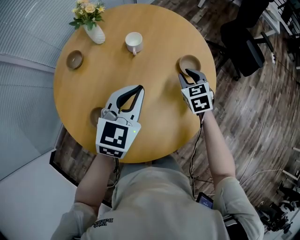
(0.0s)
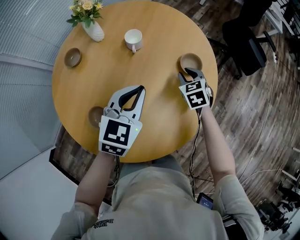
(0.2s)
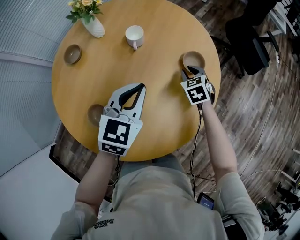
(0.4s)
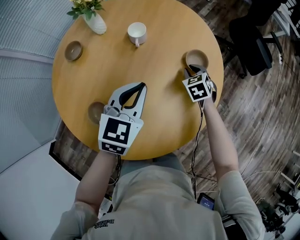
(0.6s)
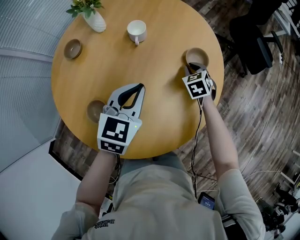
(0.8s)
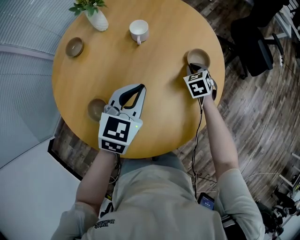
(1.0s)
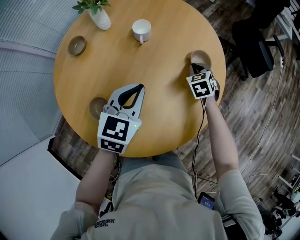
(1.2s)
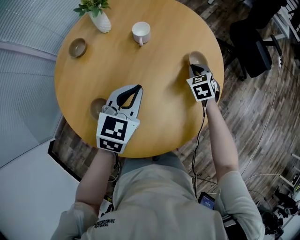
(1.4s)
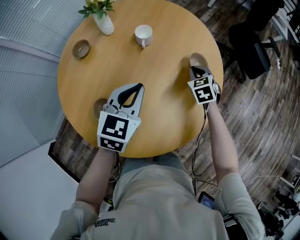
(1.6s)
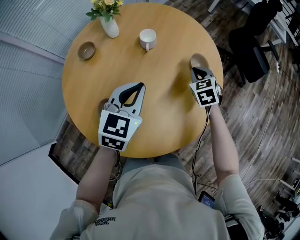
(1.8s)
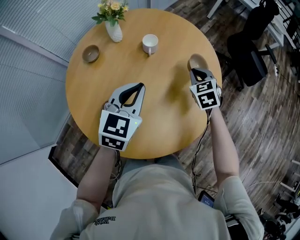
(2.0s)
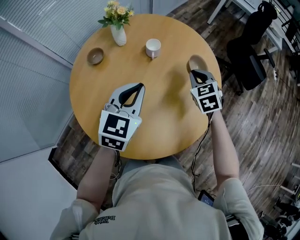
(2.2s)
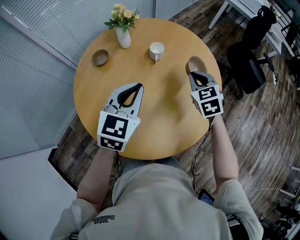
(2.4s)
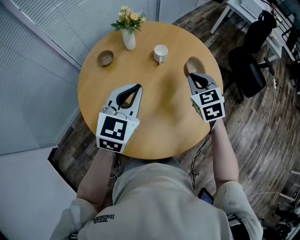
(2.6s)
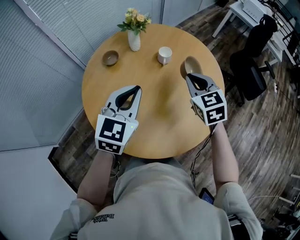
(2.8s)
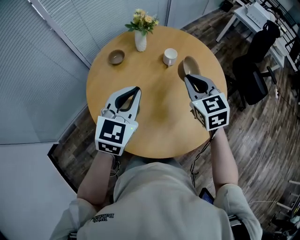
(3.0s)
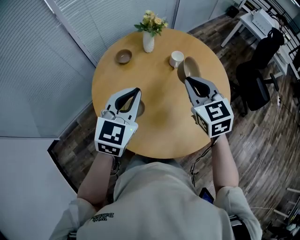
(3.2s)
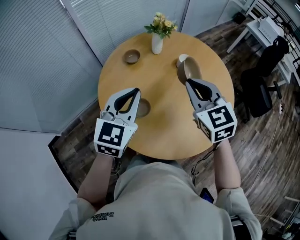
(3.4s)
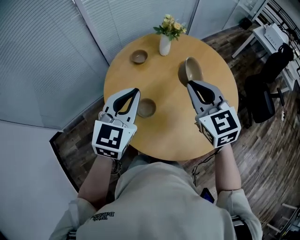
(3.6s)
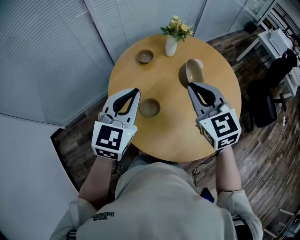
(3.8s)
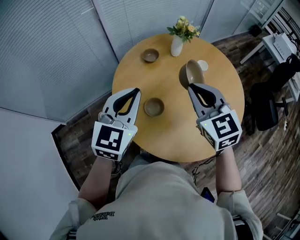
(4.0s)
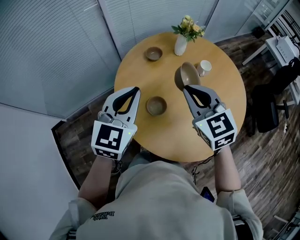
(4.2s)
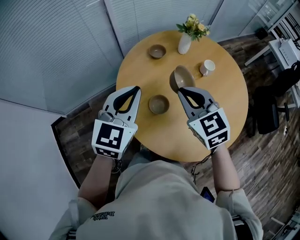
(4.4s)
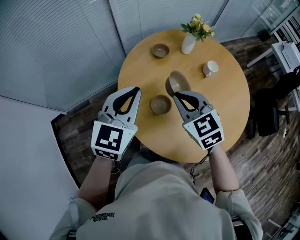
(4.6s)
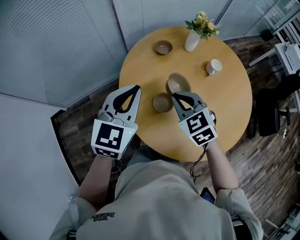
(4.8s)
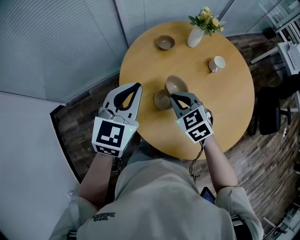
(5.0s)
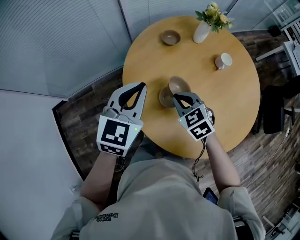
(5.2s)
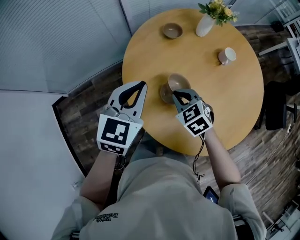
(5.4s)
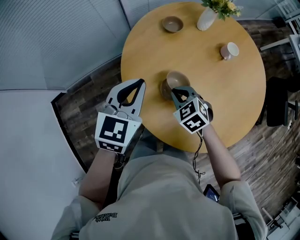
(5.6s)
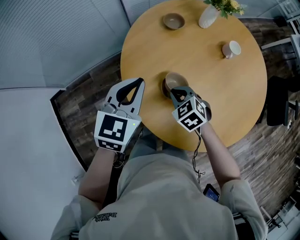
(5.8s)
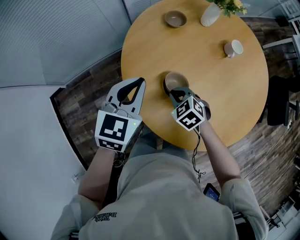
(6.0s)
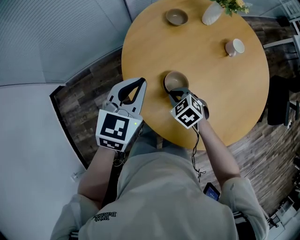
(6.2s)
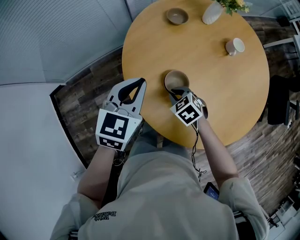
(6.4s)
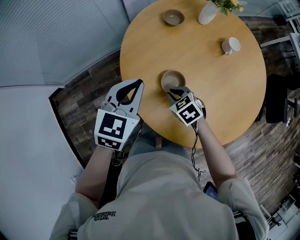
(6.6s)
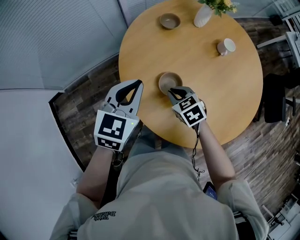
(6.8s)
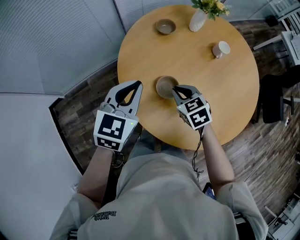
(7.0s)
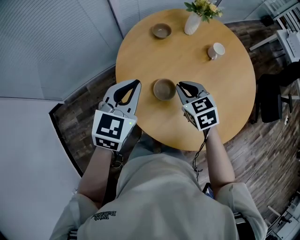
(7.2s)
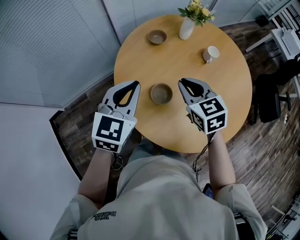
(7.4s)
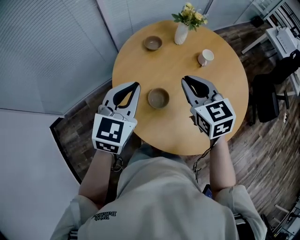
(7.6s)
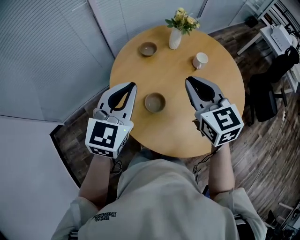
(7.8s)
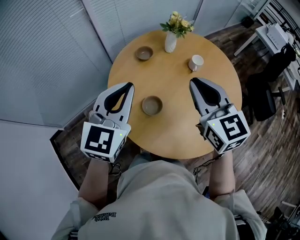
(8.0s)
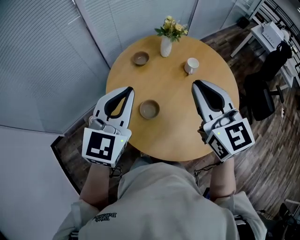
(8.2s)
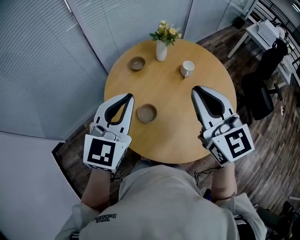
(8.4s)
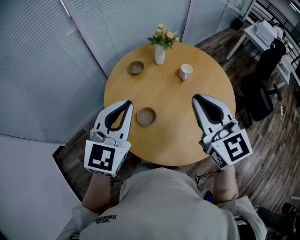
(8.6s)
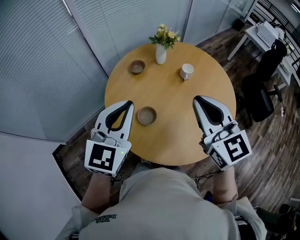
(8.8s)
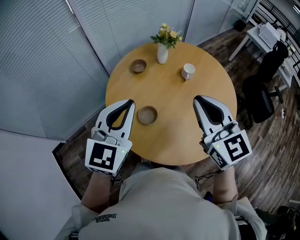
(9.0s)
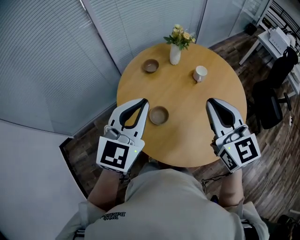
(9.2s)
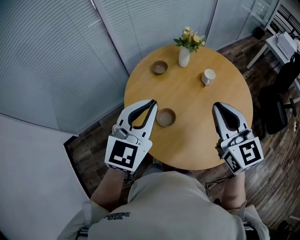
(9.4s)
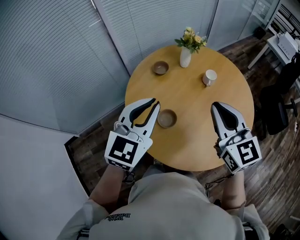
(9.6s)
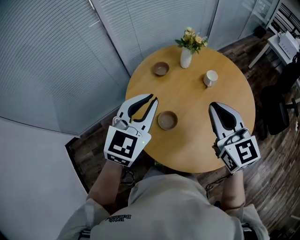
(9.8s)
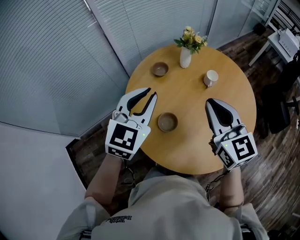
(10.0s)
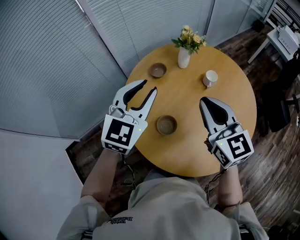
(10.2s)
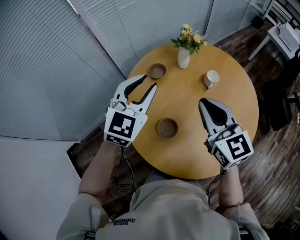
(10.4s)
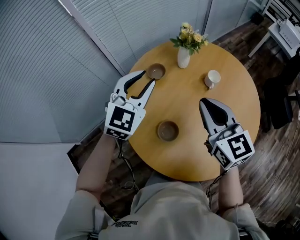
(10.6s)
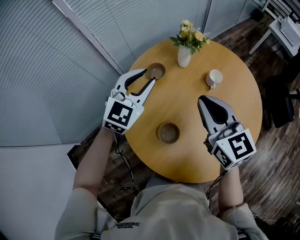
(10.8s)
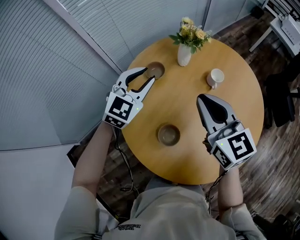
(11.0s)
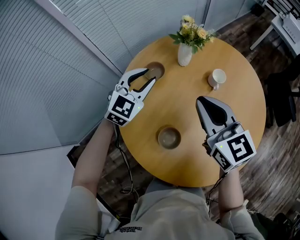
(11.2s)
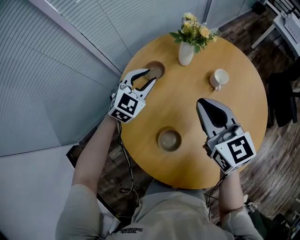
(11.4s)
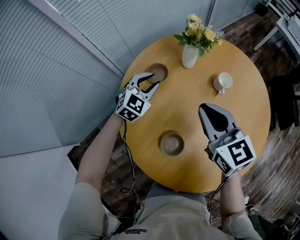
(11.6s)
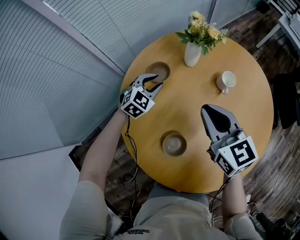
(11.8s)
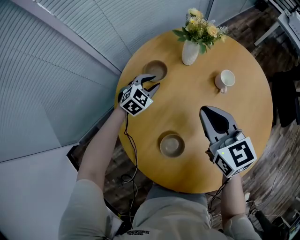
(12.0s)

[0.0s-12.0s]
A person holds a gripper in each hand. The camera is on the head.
1.6s to 3.0s: The right gripper moves upward, to the left and backward, approximately 30 cm, and turns by about 30 degrees; the left gripper travels upward, to the left and backward by some 20 cm.
3.0s to 4.4s: Both grippers move to the left, roughly 20 cm. The right gripper swivels approximately 30 degrees.
4.4s to 6.0s: The left gripper is displaced downward by approximately 15 cm. Meanwhile the right gripper travels downward by some 25 cm, and angles its fingers downward, by approximately 30 degrees.
6.0s to 7.6s: The left gripper shifts roughly 10 cm upward. Meanwhile the right gripper travels upward by approximately 25 cm, and points its fingers some 30 degrees further upward.
7.6s to 9.0s: The left gripper moves upward and to the right, about 10 cm. The right gripper shifts some 15 cm upward, to the right and backward.
9.0s to 10.4s: The right gripper moves forward and downward, some 10 cm. Meanwhile the left gripper shifts roughly 15 cm forward, and opens its fingers.
10.4s to 12.0s: The left gripper shifts some 40 cm downward and forward, and changes its angle by some 30 degrees. Meanwhile the right gripper travels downward and forward by roughly 15 cm.

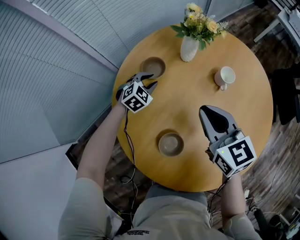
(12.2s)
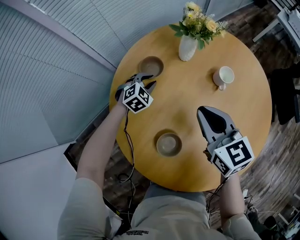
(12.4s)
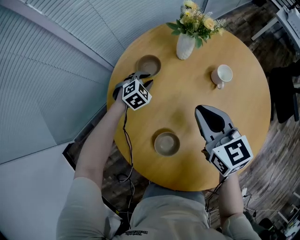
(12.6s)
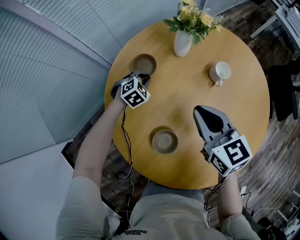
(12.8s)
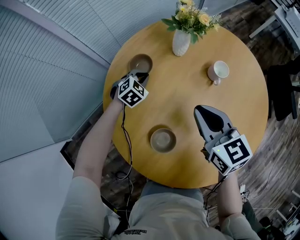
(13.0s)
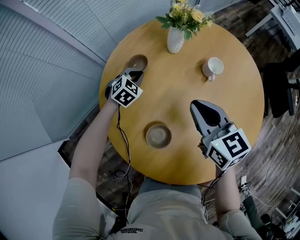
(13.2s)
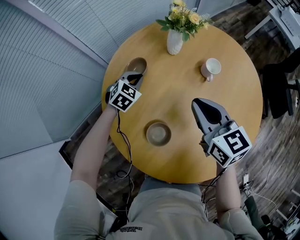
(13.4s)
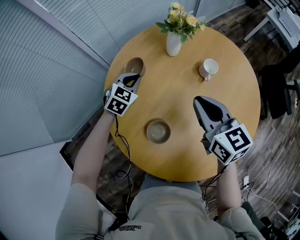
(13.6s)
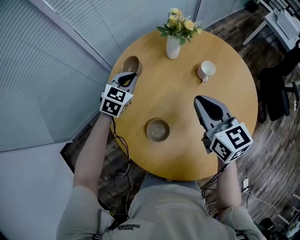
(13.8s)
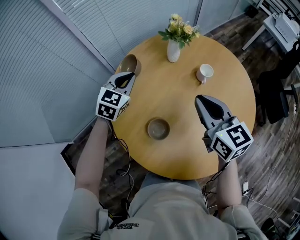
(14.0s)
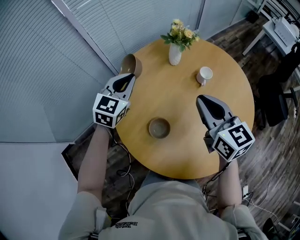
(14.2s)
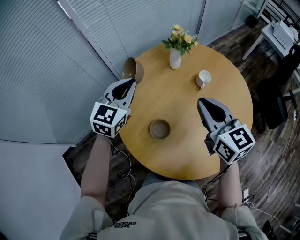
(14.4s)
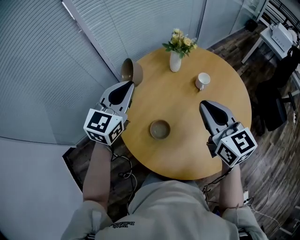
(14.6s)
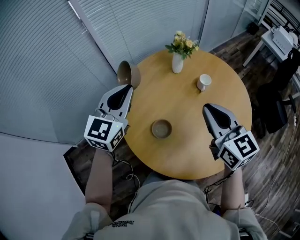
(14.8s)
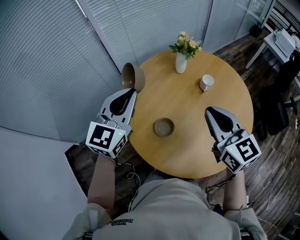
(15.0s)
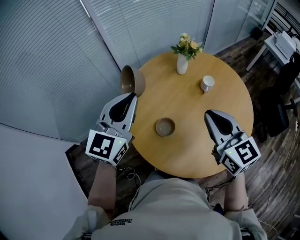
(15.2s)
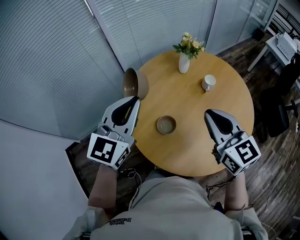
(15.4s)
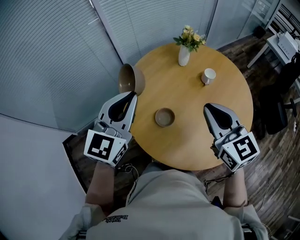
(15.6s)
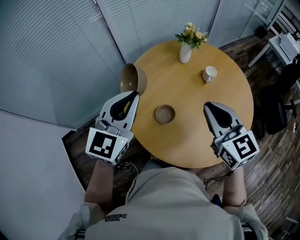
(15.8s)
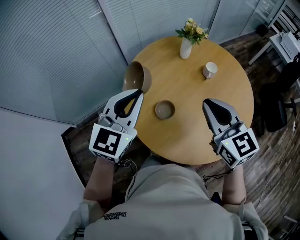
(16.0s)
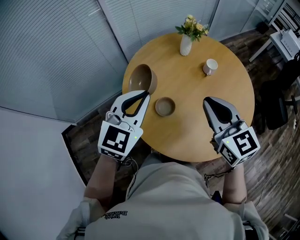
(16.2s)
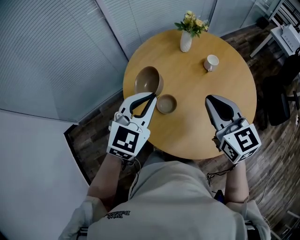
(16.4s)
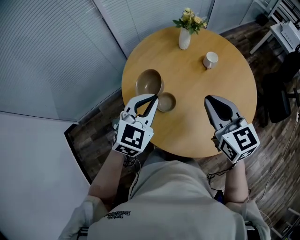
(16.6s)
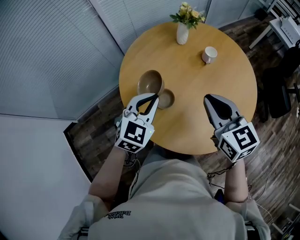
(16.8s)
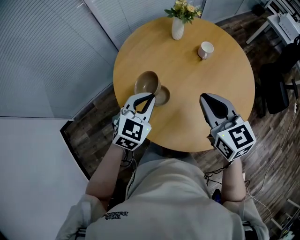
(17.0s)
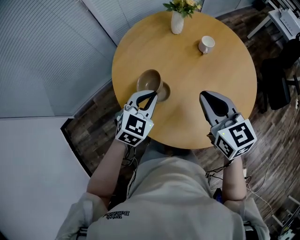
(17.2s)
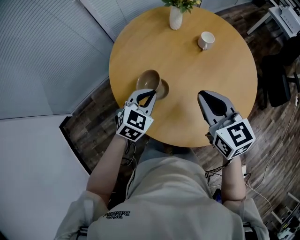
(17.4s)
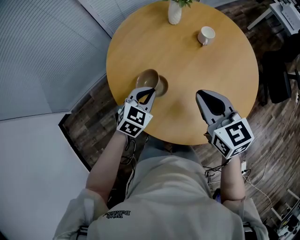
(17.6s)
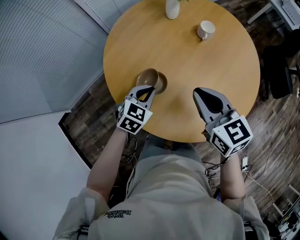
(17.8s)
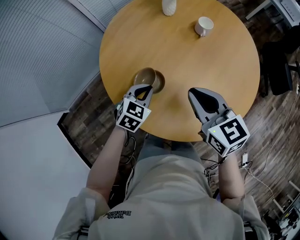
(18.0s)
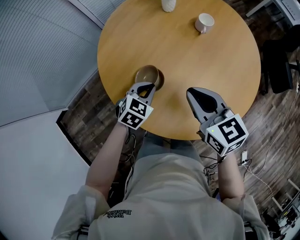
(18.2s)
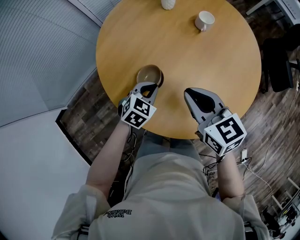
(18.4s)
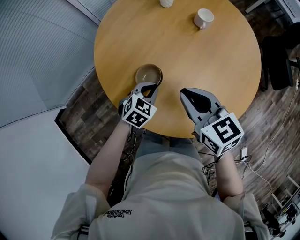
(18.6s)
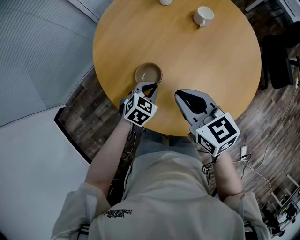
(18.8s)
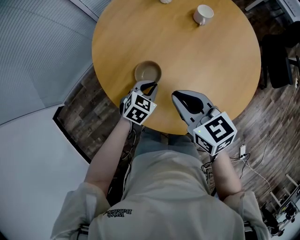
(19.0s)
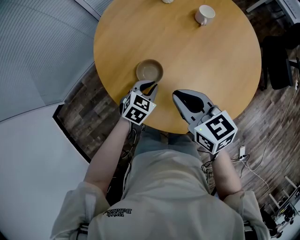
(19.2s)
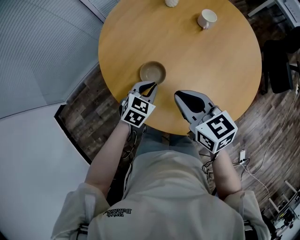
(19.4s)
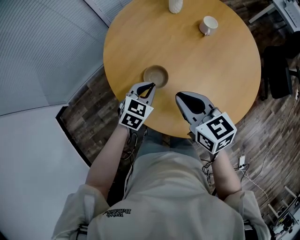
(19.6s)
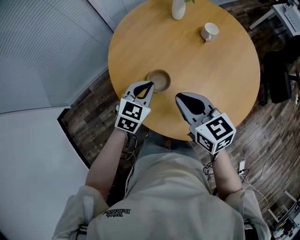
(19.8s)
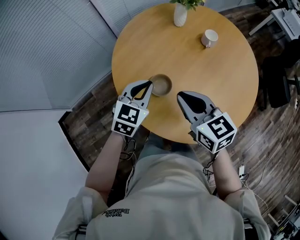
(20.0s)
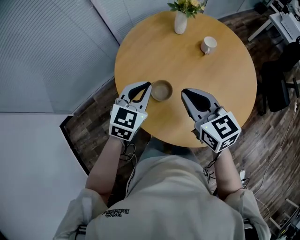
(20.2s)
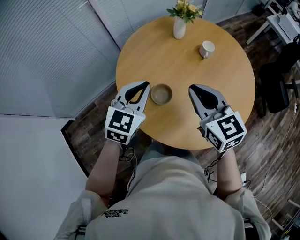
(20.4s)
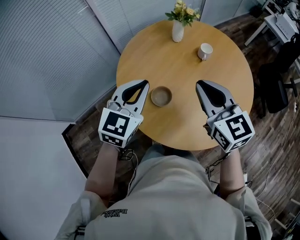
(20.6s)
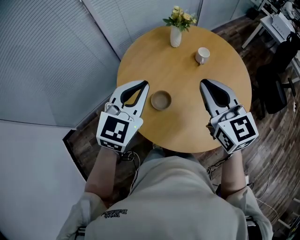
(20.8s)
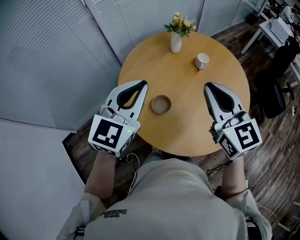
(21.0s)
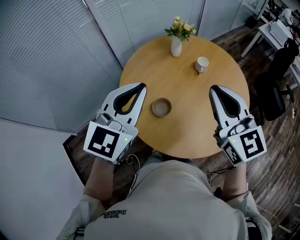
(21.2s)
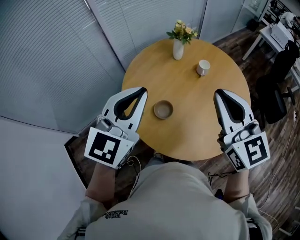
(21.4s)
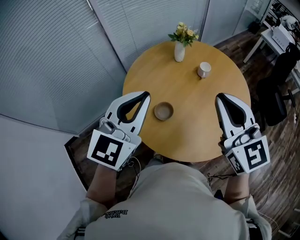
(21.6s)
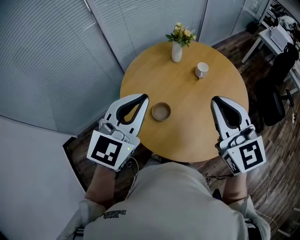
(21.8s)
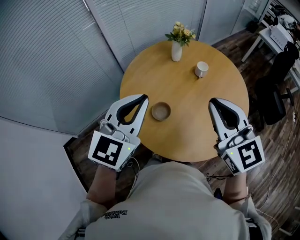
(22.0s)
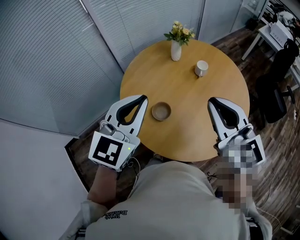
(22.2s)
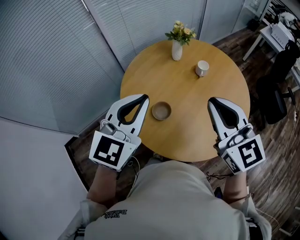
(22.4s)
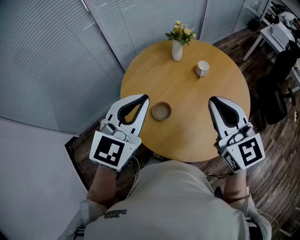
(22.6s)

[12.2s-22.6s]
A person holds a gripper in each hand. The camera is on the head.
12.2s to 13.6s: The left gripper moves upward, approximately 10 cm, and closes up; the right gripper shifts by approximately 5 cm.
13.6s to 15.2s: The left gripper travels upward and backward by about 40 cm, and angles its fingers upward, by about 40 degrees, while the right gripper travels backward and upward by roughly 20 cm.
15.2s to 16.6s: The right gripper changes place by approximately 5 cm. The left gripper travels downward and backward by approximately 15 cm, and changes its angle by about 20 degrees.
16.6s to 18.2s: The right gripper is displaced downward by approximately 15 cm. The left gripper heads downward, covering about 25 cm, and changes its angle by some 30 degrees.
18.2s to 19.6s: The left gripper goes downward and returns, about 5 cm each way, while the right gripper ends up roughly 5 cm from where it was.
19.6s to 21.2s: The grippers both shift upward by approximately 30 cm. The right gripper turns by some 40 degrees; the left gripper points its fingers roughly 30 degrees further upward.
21.2s to 22.6s: The grippers move only a little.

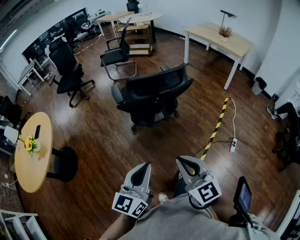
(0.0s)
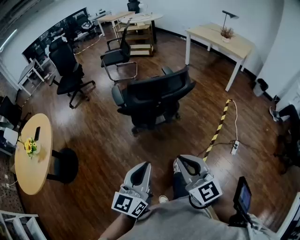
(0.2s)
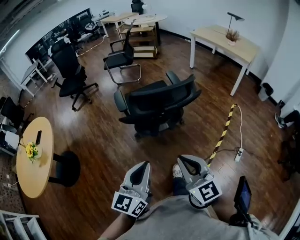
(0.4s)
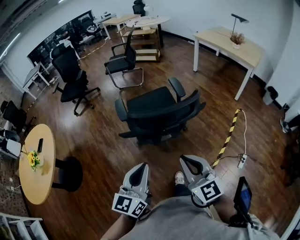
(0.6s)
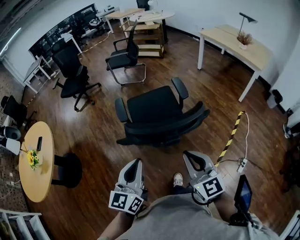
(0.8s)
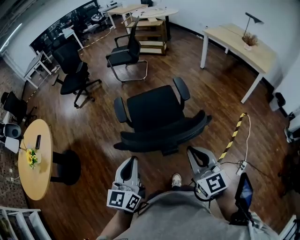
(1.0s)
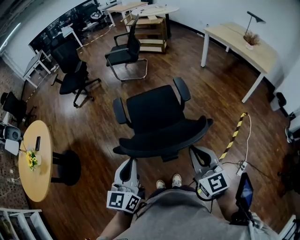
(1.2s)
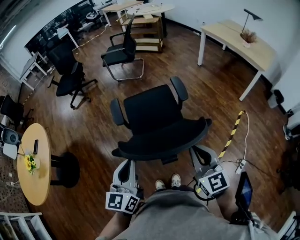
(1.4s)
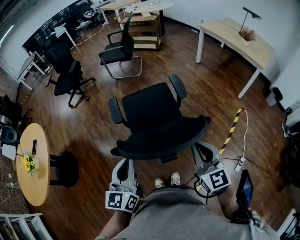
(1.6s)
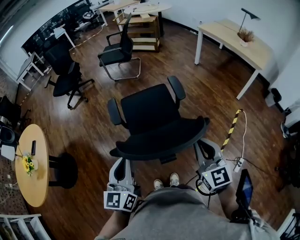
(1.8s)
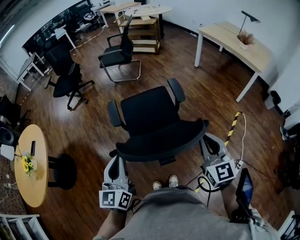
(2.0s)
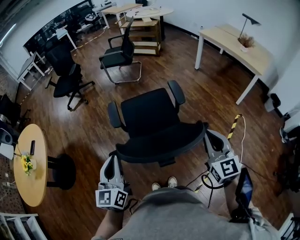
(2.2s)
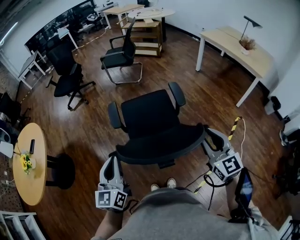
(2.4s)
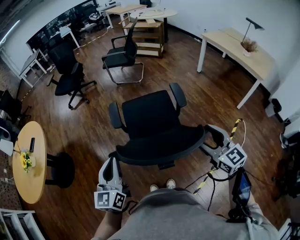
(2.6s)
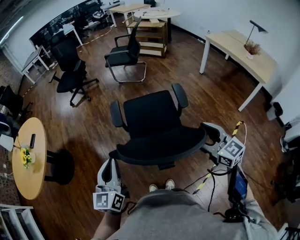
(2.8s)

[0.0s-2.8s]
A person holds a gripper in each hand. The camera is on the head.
0.0s to 1.4s: The grippers both shift forward by roughly 35 cm.
1.4s to 2.8s: The right gripper shifts roughly 10 cm forward and to the right, swivels some 20 degrees, and opens up. The left gripper goes some 5 cm to the left.
